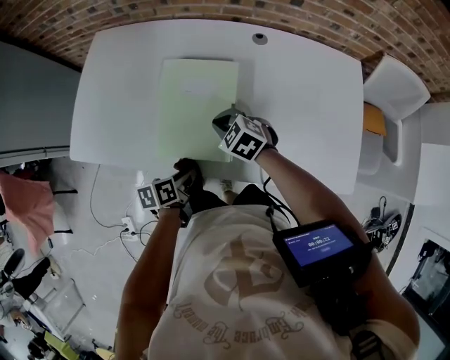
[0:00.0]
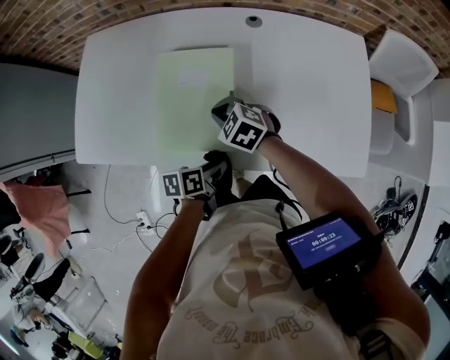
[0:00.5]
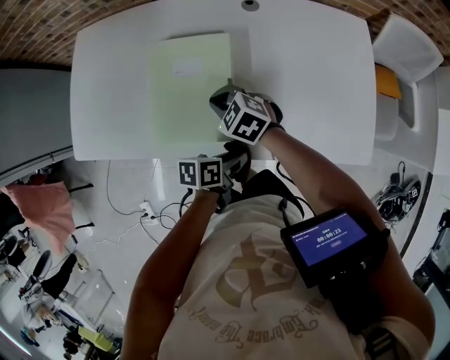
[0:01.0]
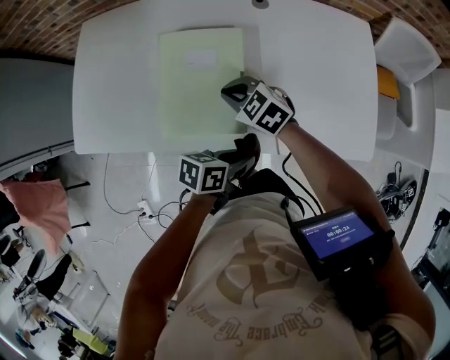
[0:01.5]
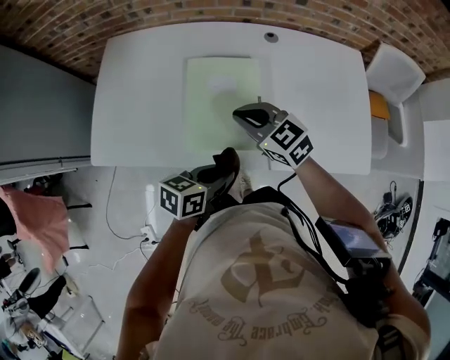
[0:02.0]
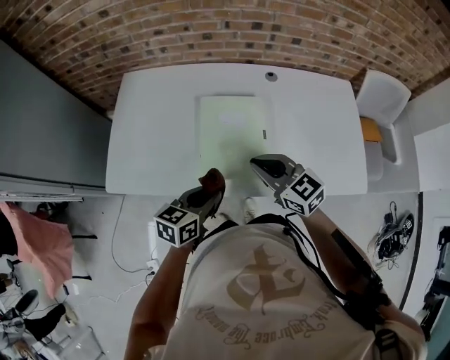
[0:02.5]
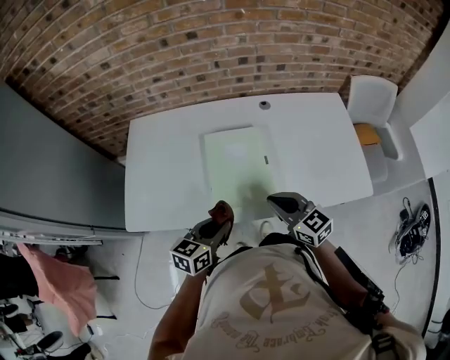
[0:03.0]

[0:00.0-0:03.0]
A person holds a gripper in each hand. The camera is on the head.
0:00.0 to 0:01.5: The left gripper changes place by some 15 cm, and turns by some 40 degrees.
0:01.5 to 0:03.0: The right gripper travels upward by about 15 cm, and rotates approximately 40 degrees. The left gripper ends up about 25 cm from where it was, and swivels roughly 40 degrees.

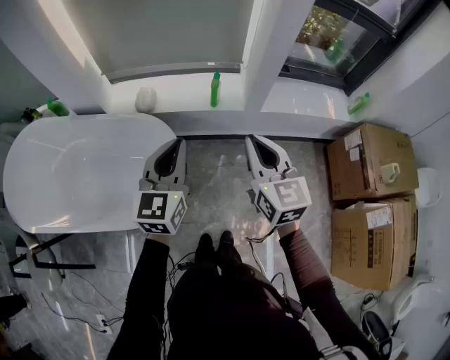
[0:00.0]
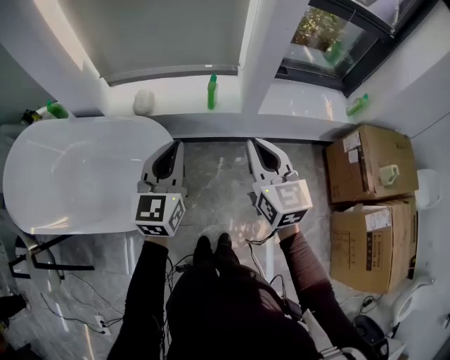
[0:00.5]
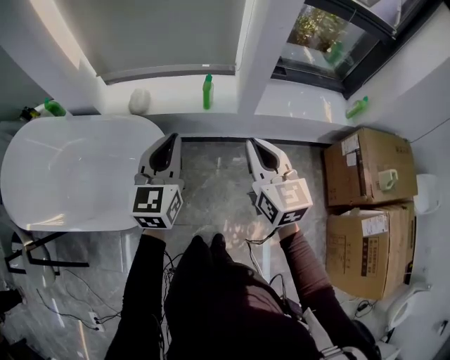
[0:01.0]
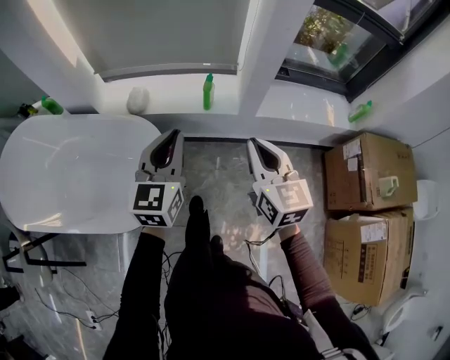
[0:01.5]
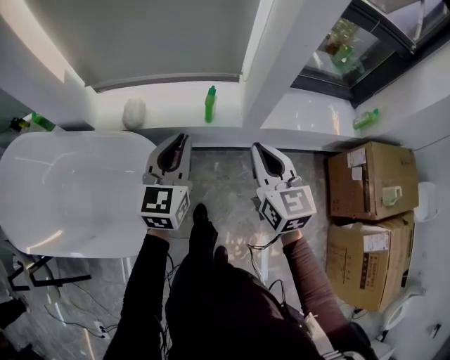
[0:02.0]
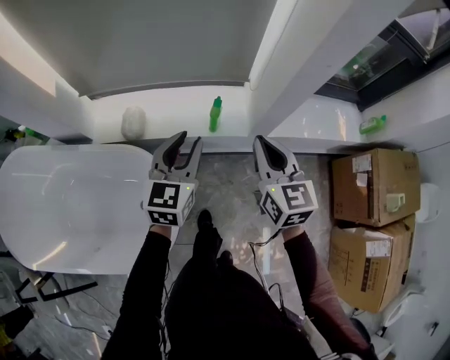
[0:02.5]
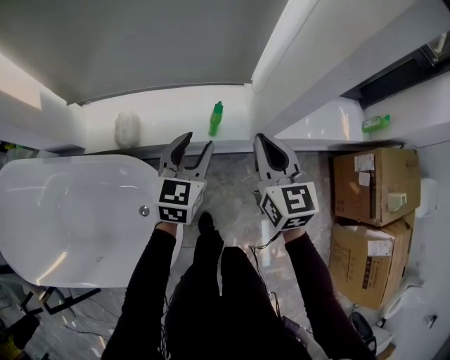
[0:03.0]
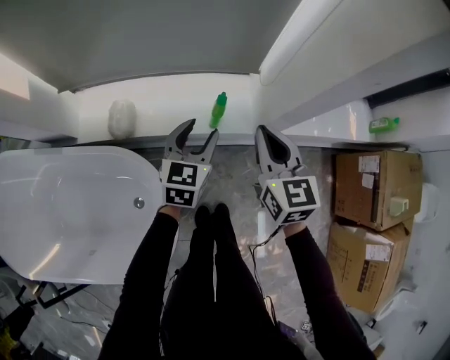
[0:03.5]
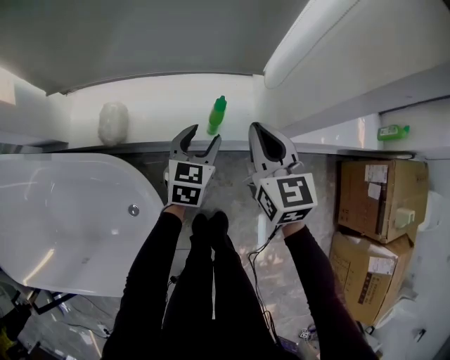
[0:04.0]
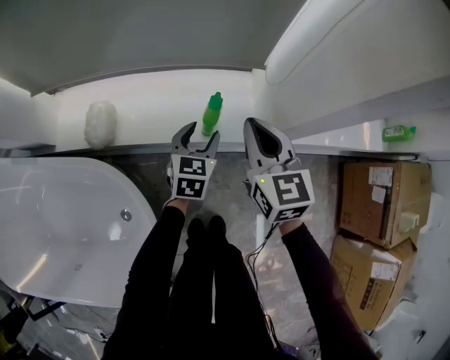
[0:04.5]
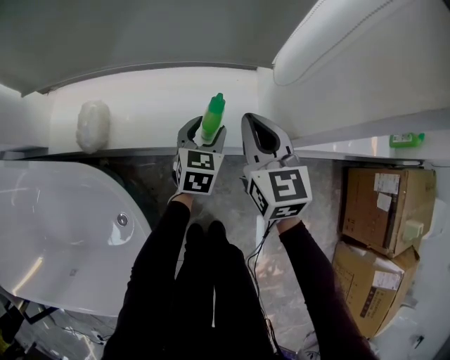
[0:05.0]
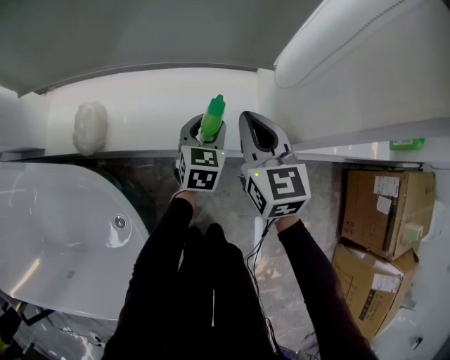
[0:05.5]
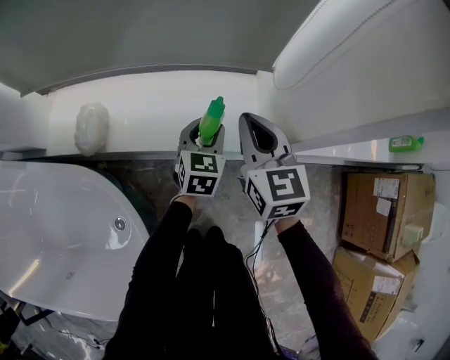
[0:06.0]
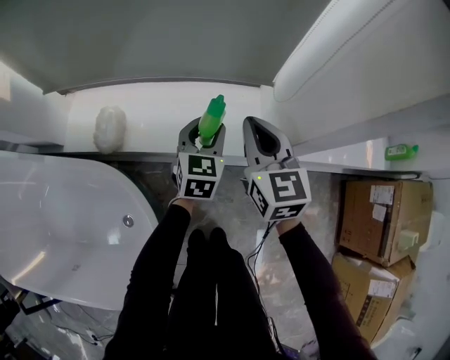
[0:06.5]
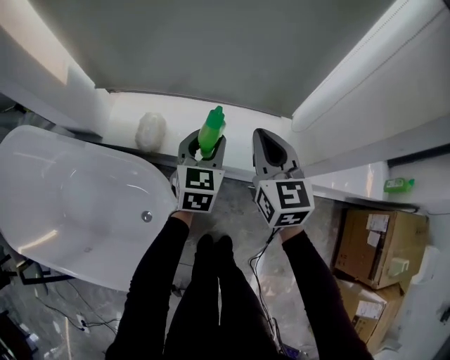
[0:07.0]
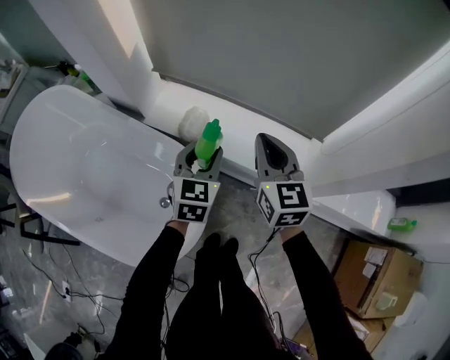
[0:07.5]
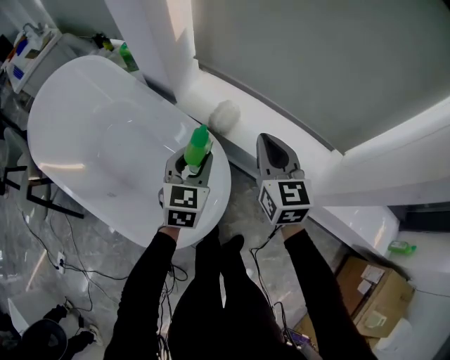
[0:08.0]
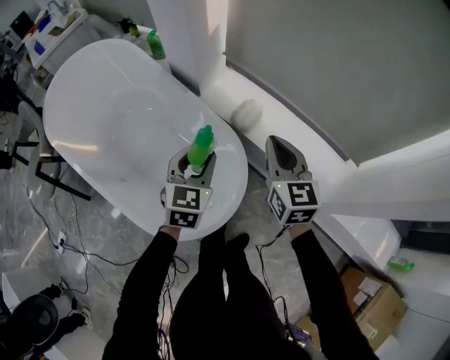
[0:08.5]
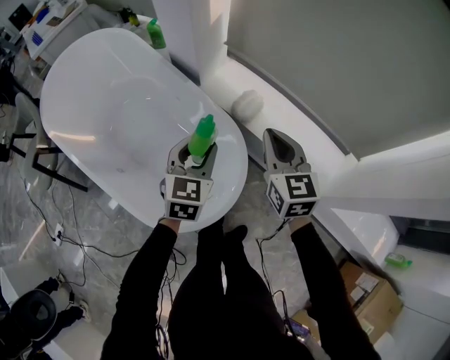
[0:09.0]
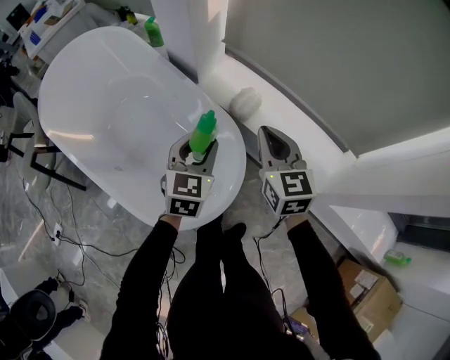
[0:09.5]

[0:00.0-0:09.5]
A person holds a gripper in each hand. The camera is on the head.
0:00.0 to 0:02.0: Both grippers move forward, about 15 cm.
0:02.0 to 0:04.0: The right gripper goes about 25 cm forward and downward, while the left gripper shifts some 35 cm downward and forward, turns by roughly 20 degrees, and opens up.
0:04.0 to 0:05.5: Both grippers travel together downward and forward, approximately 15 cm.
0:05.5 to 0:07.5: The left gripper heads upward, to the left and backward, covering roughly 40 cm, and turns by approximately 20 degrees; the right gripper shifts about 30 cm upward and to the left, and swivels roughly 20 degrees.
0:07.5 to 0:09.5: Both grippers move to the left, about 15 cm.

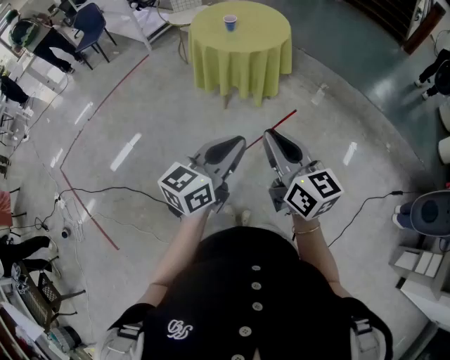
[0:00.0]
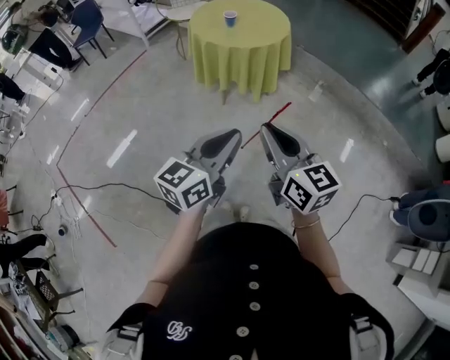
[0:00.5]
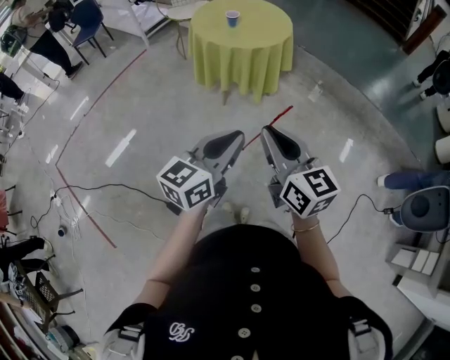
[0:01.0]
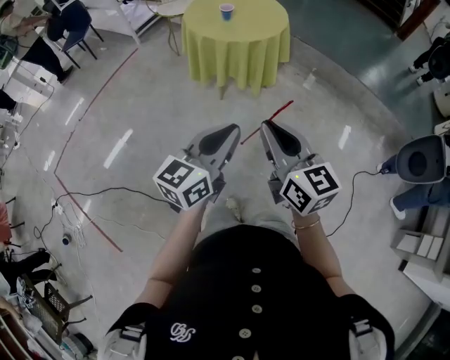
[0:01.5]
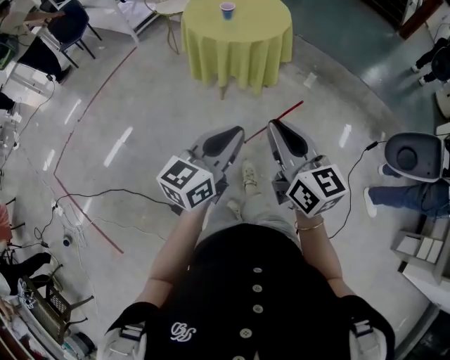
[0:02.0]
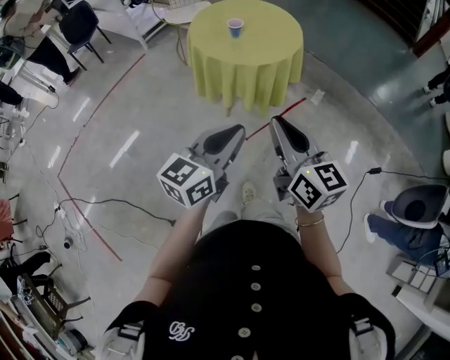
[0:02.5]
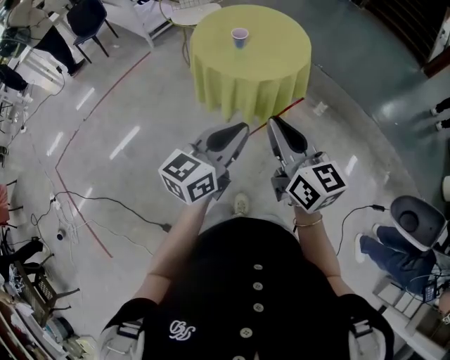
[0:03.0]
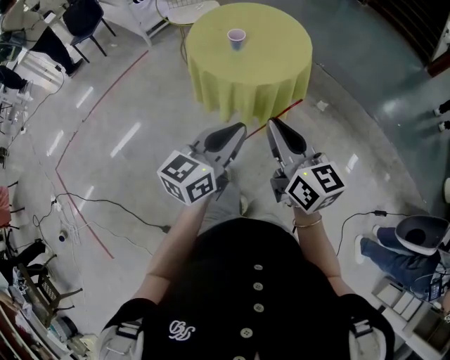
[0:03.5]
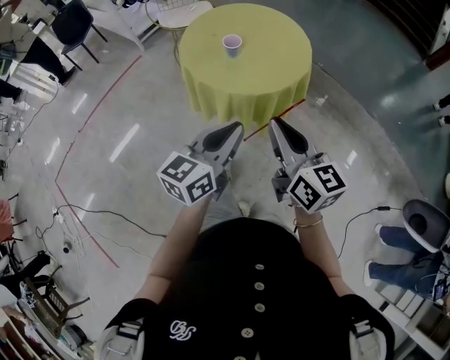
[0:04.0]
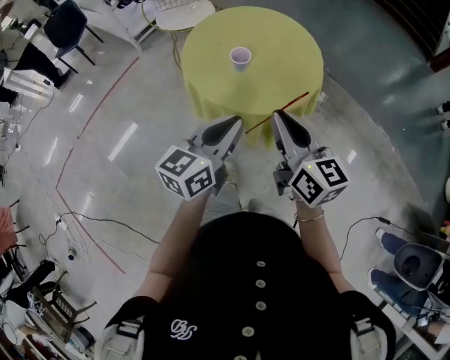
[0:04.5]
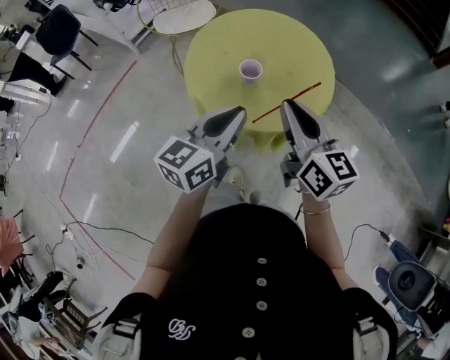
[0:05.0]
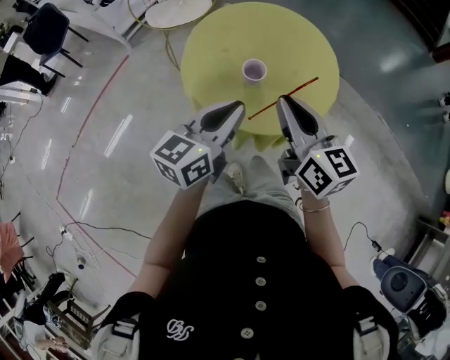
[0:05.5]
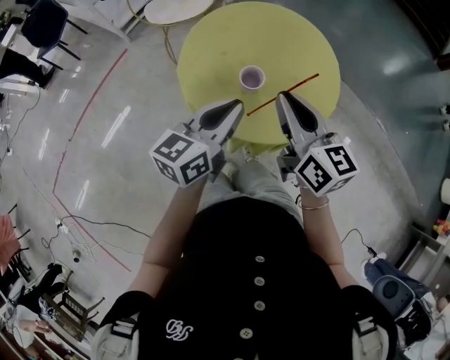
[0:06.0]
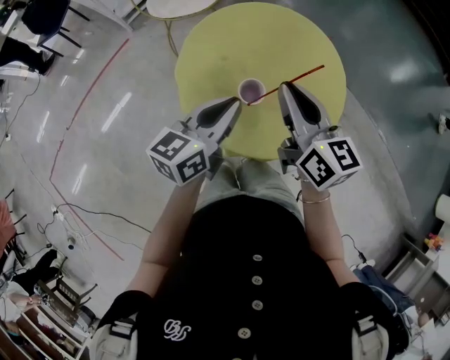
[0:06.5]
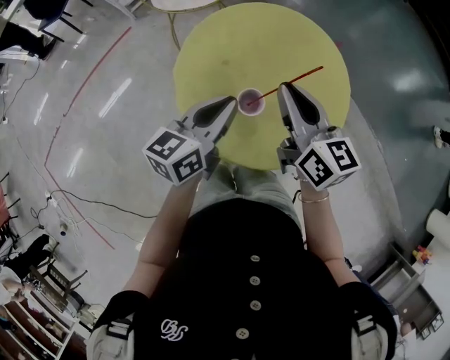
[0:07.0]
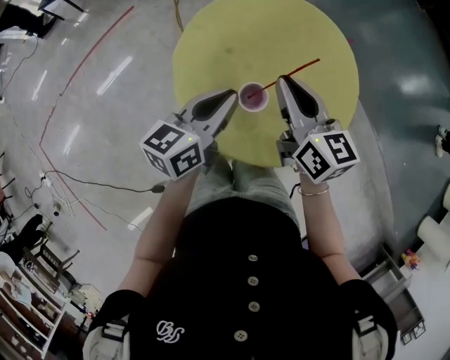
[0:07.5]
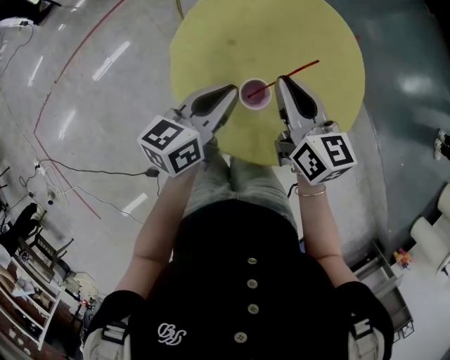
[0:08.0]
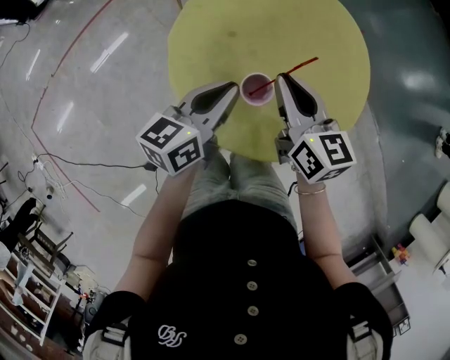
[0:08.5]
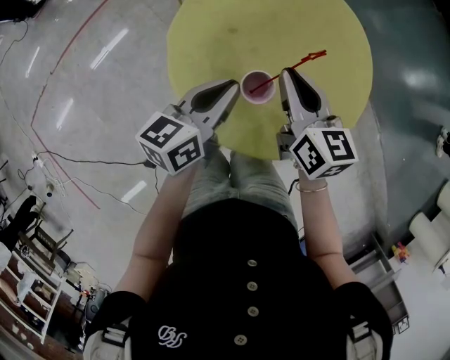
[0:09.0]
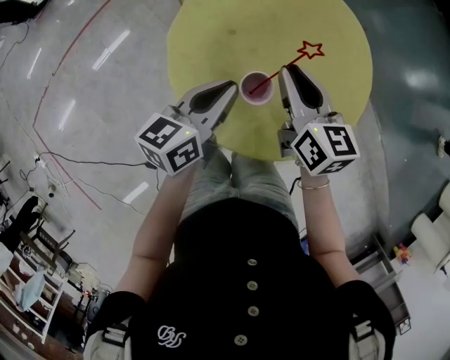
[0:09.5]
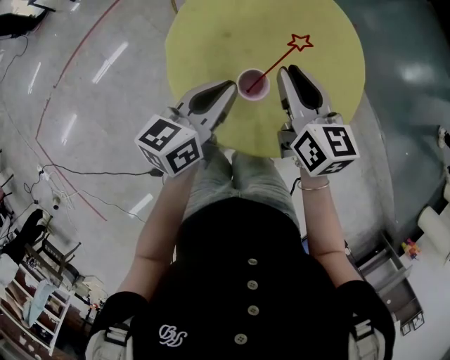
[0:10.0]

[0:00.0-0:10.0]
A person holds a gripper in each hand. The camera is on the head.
0:00.0 to 0:02.0: The left gripper travels to the left and forward by roughly 5 cm. The right gripper changes place by some 5 cm.
0:02.0 to 0:04.0: The two grippers go about 30 cm forward.
0:04.0 to 0:06.0: The grippers both shift forward by some 30 cm.
0:06.0 to 0:08.0: Both grippers travel together forward and downward, some 15 cm.
0:08.0 to 0:10.0: The grippers move only a little.

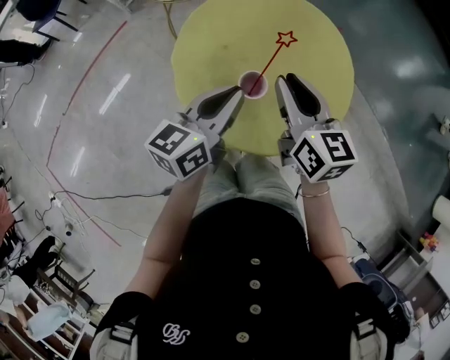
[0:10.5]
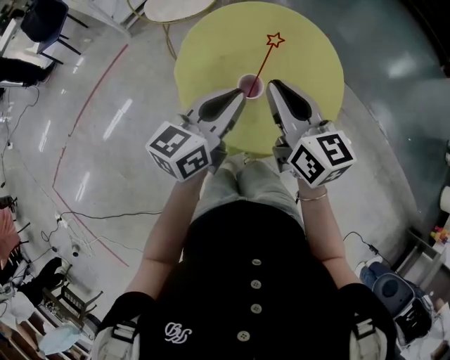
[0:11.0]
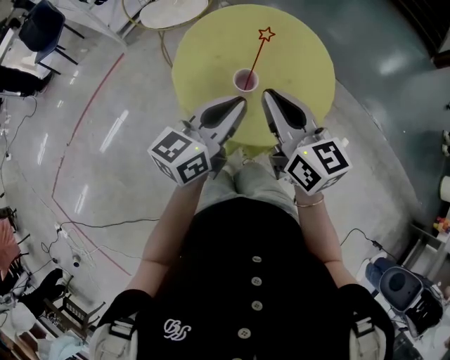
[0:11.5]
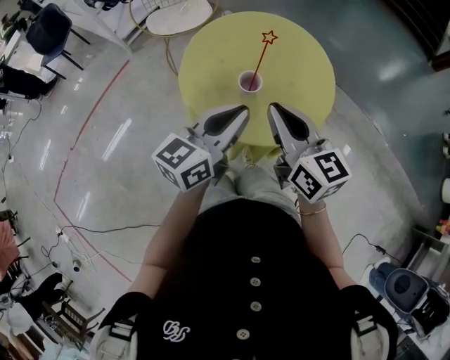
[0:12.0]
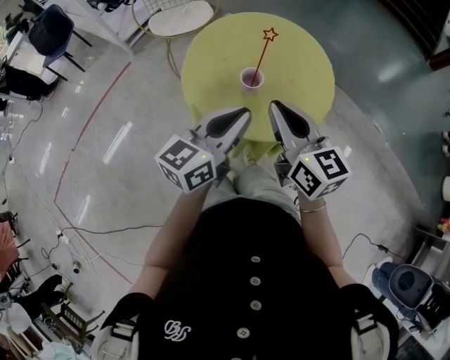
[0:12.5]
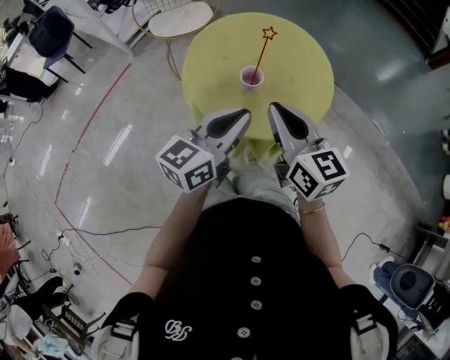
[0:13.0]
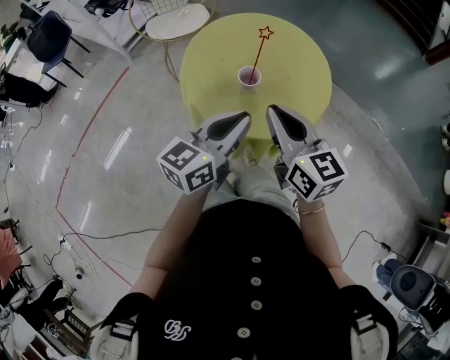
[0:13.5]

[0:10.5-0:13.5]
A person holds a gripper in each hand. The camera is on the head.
0:10.5 to 0:12.0: Both grippers move backward and upward, some 15 cm.
0:12.0 to 0:13.5: The grippers make only small movements.

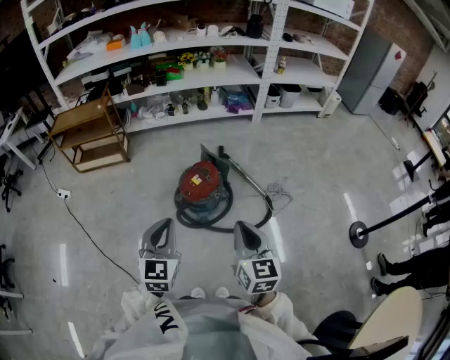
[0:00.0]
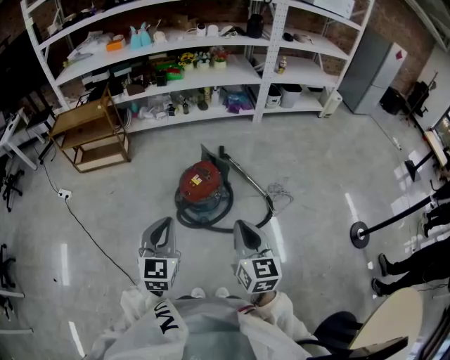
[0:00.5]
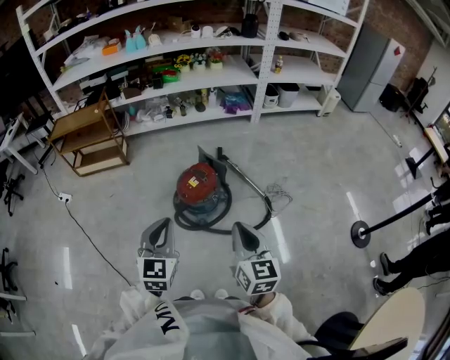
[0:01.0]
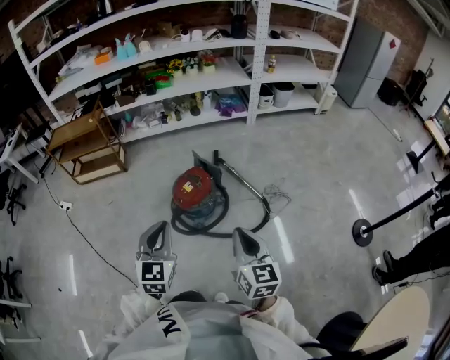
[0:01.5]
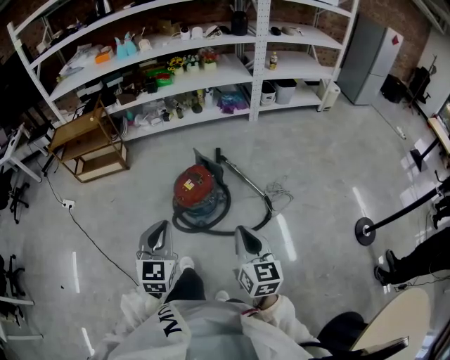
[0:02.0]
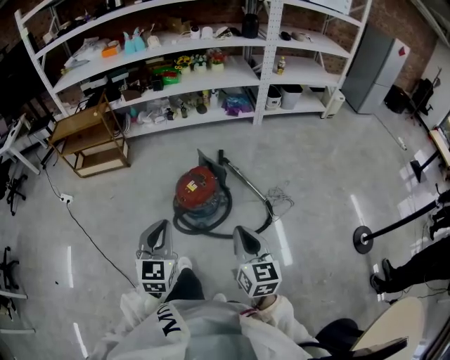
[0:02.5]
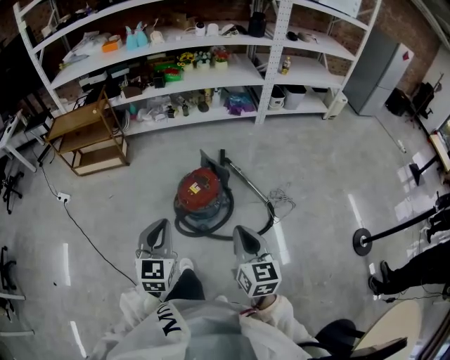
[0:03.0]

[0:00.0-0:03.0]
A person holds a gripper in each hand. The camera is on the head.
0:00.0 to 0:01.5: The grippers both shift to the right by some 5 cm.
0:01.5 to 0:03.0: The right gripper shifts some 5 cm forward, while the left gripper changes place by about 5 cm.
